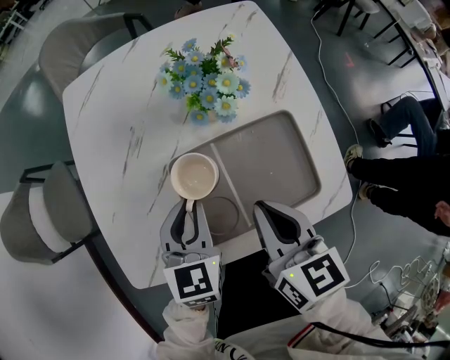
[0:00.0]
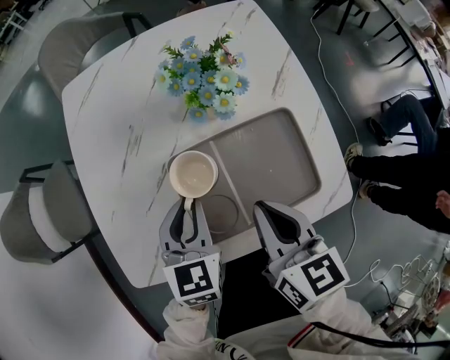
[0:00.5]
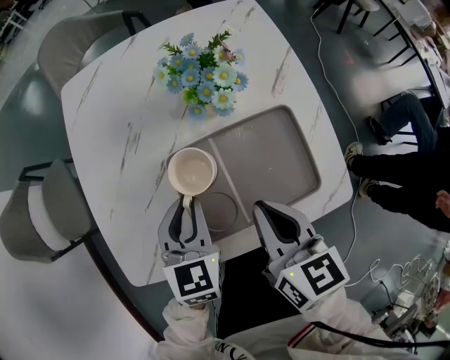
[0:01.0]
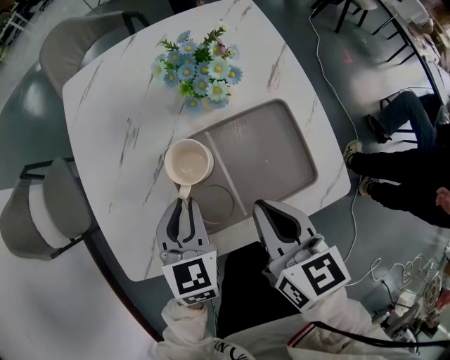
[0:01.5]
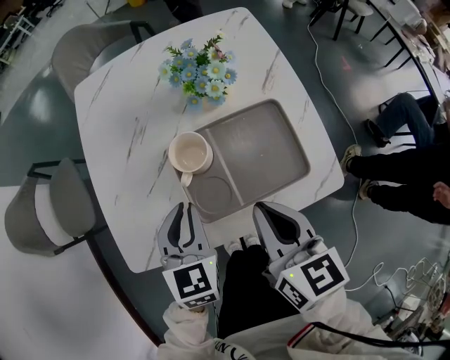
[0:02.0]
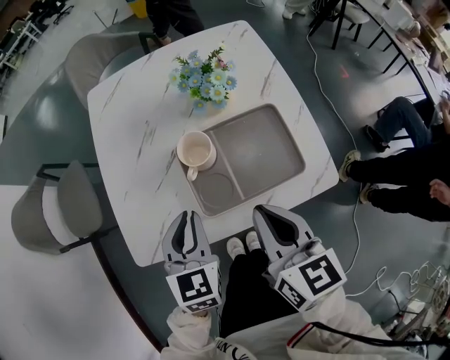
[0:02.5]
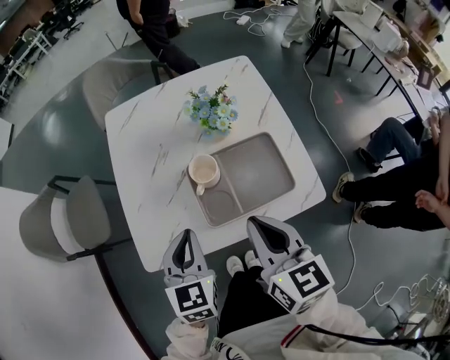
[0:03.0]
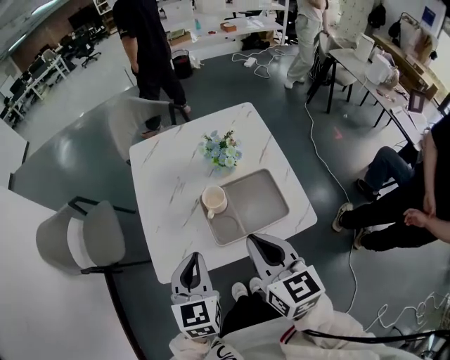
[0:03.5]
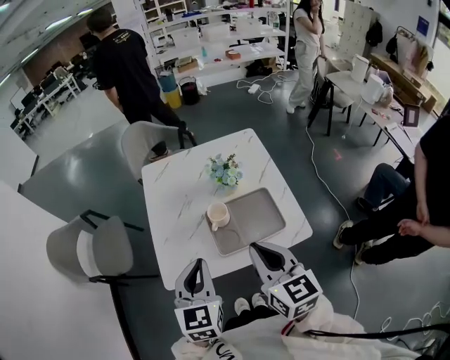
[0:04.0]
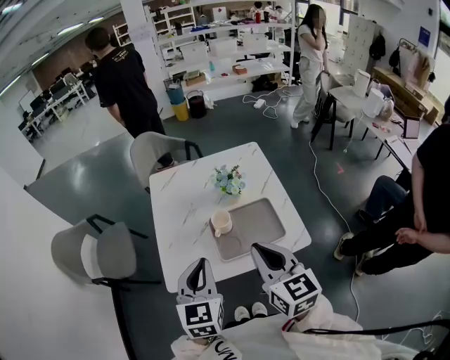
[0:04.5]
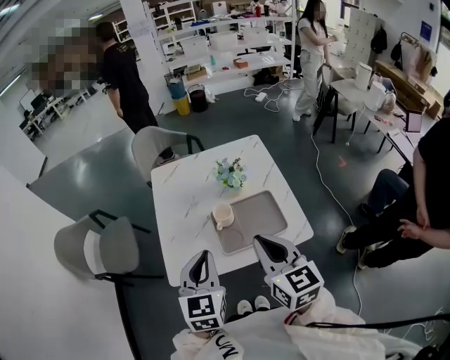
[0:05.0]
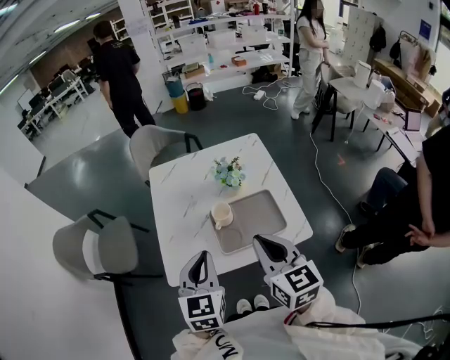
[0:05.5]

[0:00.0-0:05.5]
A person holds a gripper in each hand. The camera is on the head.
0:00.0 to 0:02.0: Both grippers travel together backward, some 5 cm.
0:02.0 to 0:03.5: The right gripper heads upward, covering approximately 20 cm; the left gripper heads upward and backward, covering approximately 20 cm.
0:03.5 to 0:05.5: The right gripper changes place by some 5 cm, while the left gripper heads upward, covering roughly 5 cm.

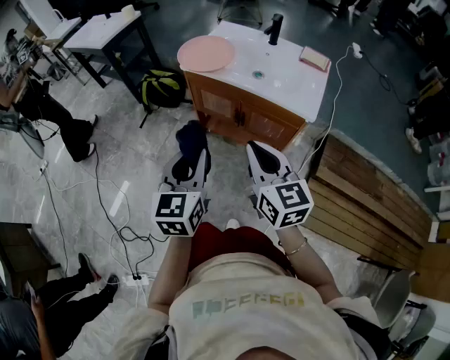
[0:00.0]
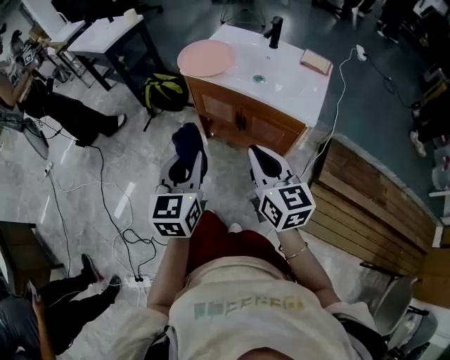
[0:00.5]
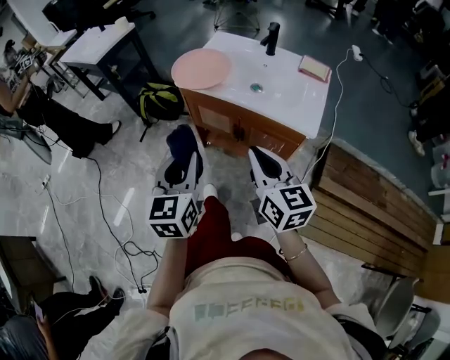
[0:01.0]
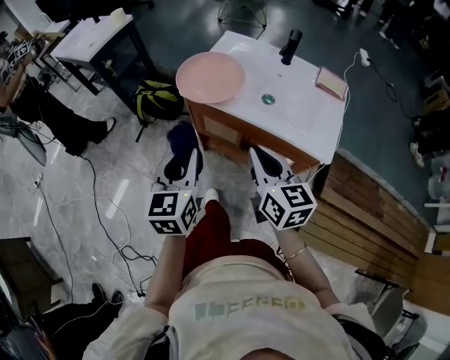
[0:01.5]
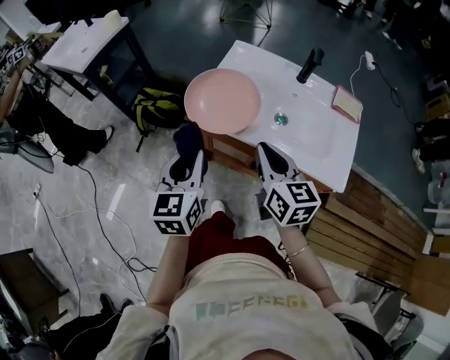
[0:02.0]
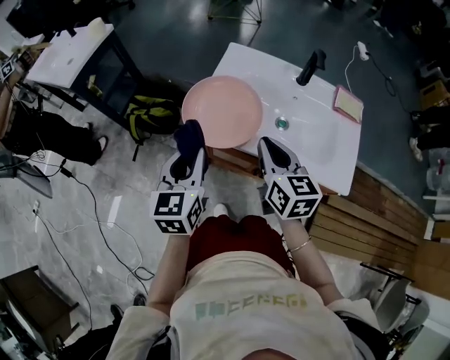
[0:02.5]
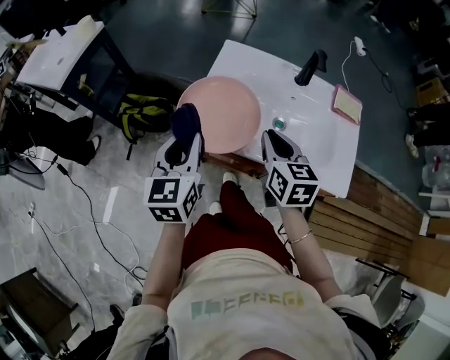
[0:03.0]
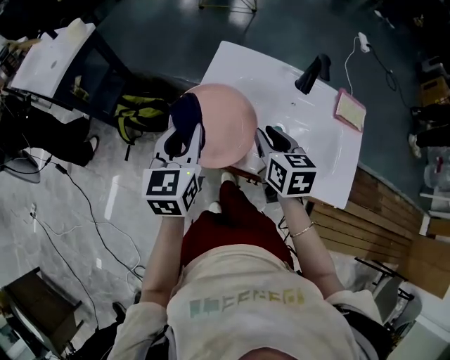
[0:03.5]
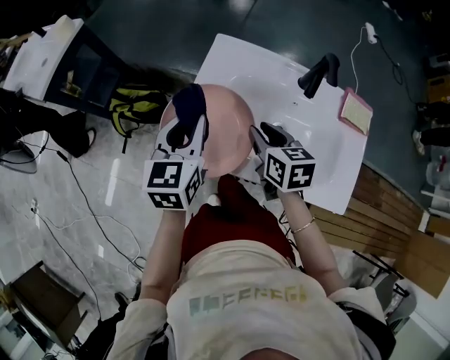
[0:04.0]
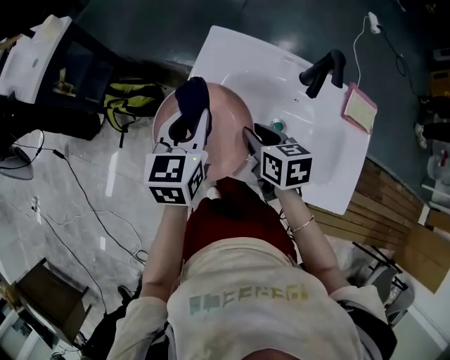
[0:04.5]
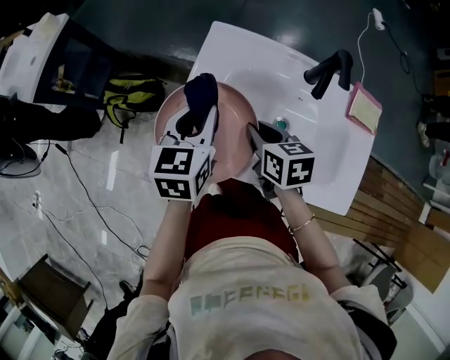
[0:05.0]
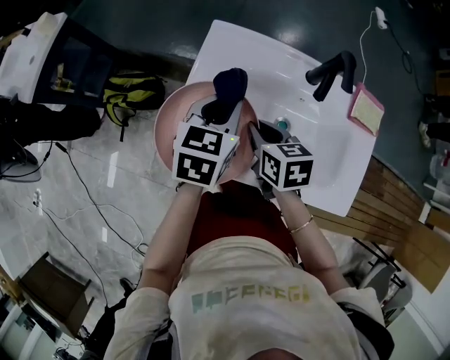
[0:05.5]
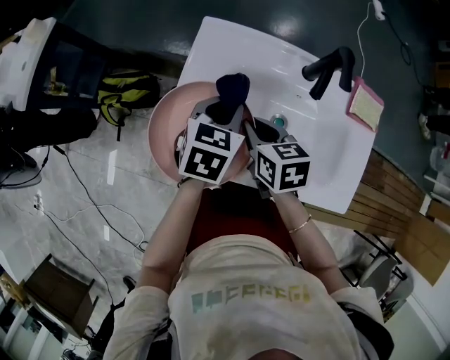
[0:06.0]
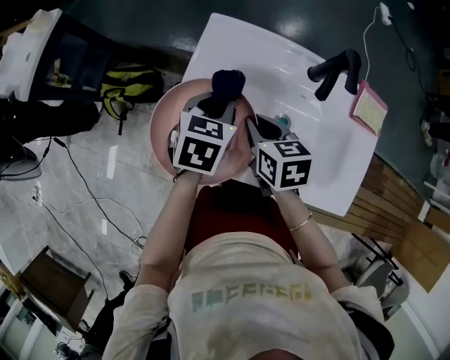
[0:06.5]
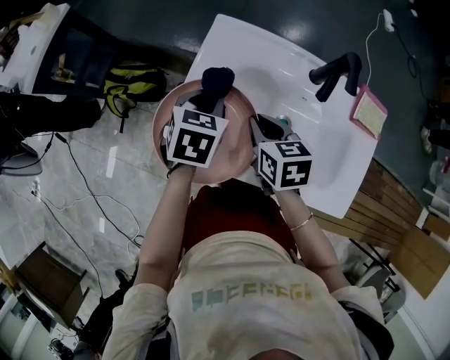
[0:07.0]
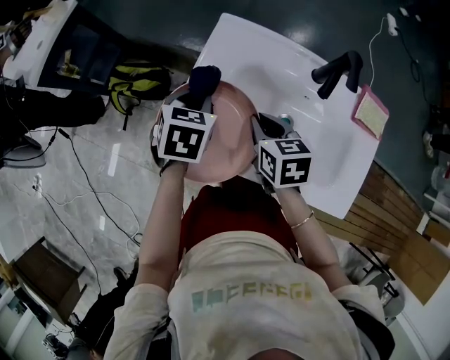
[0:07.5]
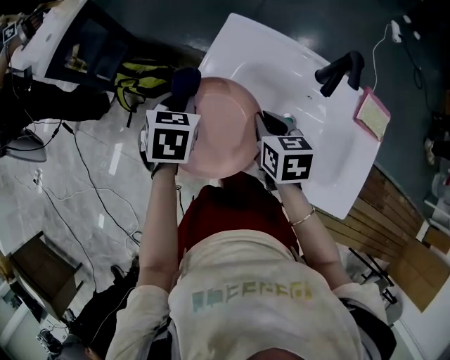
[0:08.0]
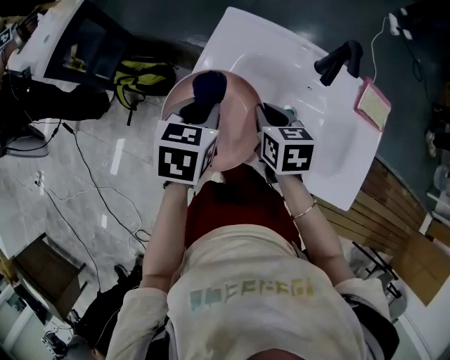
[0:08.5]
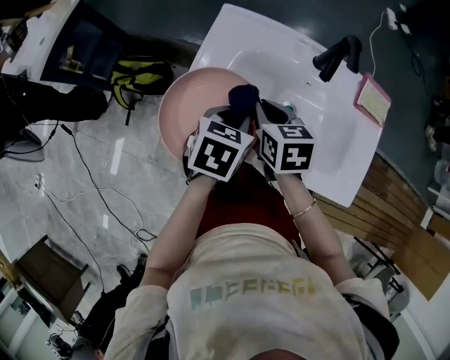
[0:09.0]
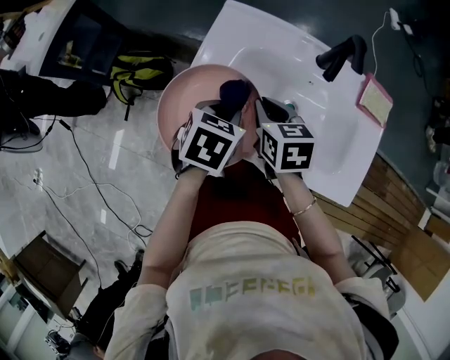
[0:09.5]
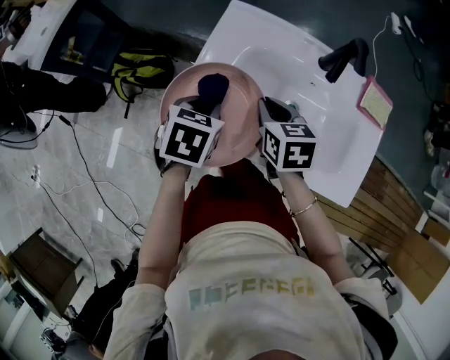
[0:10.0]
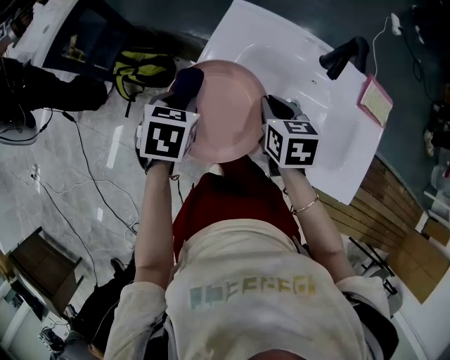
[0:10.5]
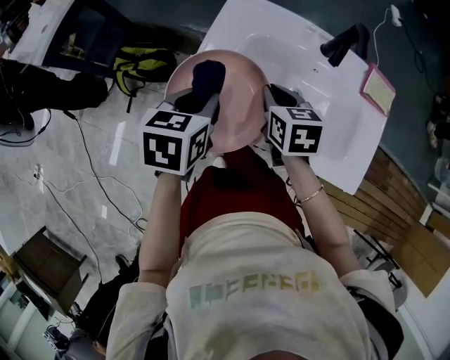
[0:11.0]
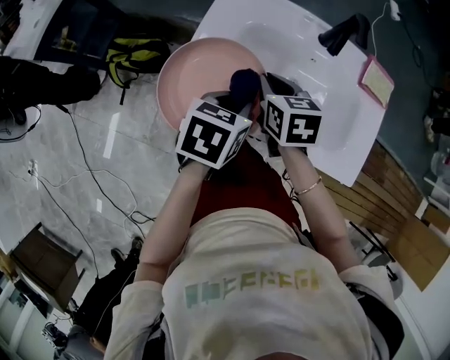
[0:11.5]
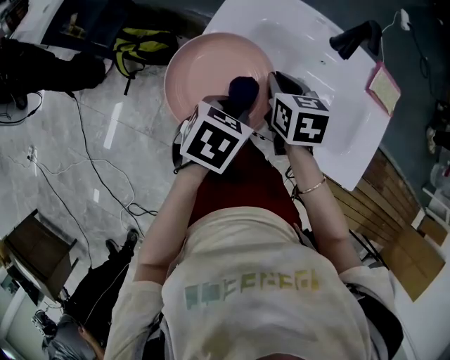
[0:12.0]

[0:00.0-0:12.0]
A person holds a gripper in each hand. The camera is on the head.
0:00.0 to 0:02.0: The grippers both shift forward by about 35 cm.
0:02.0 to 0:04.0: The left gripper heads forward, covering about 25 cm, while the right gripper moves forward and downward, about 25 cm, and changes its angle by roughly 20 degrees.
0:04.0 to 0:06.0: The right gripper changes place by roughly 5 cm. The left gripper goes about 15 cm to the right, downward and forward, and changes its angle by about 30 degrees.
0:06.0 to 0:08.0: The left gripper moves to the left, some 15 cm, and swivels about 20 degrees.
0:08.0 to 0:10.0: The left gripper shifts some 5 cm to the right.
0:10.0 to 0:12.0: The left gripper is displaced backward and to the right by some 10 cm.

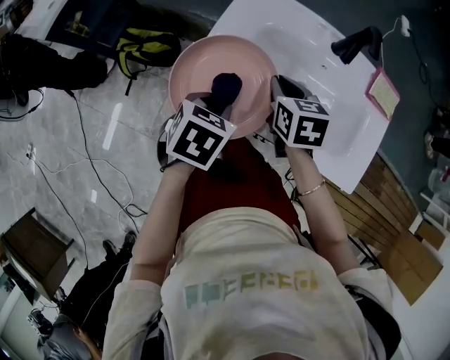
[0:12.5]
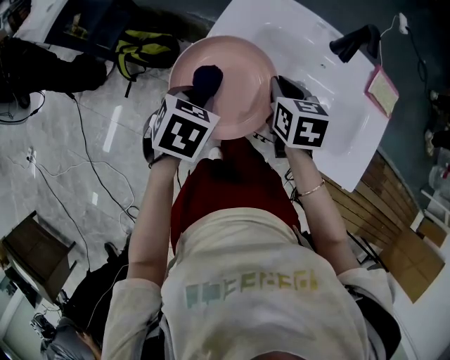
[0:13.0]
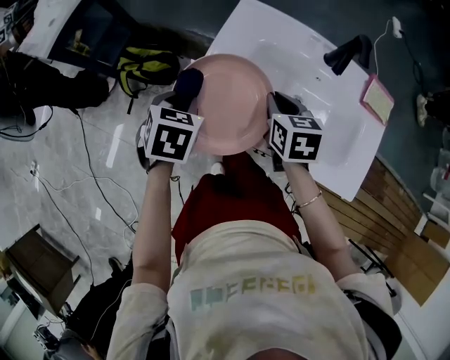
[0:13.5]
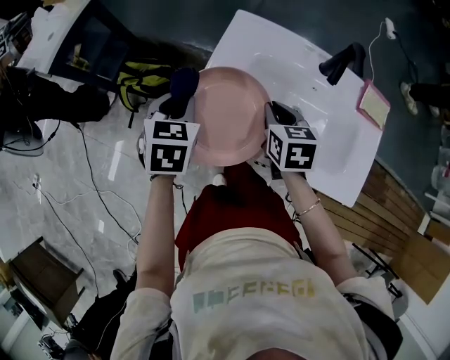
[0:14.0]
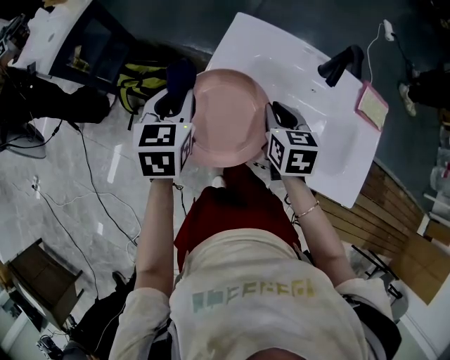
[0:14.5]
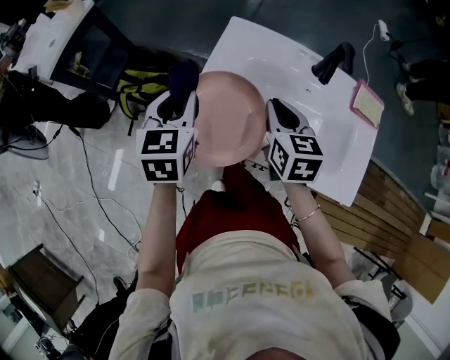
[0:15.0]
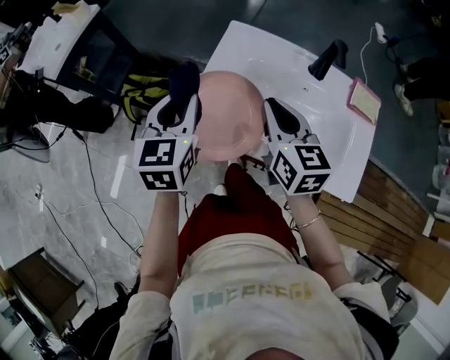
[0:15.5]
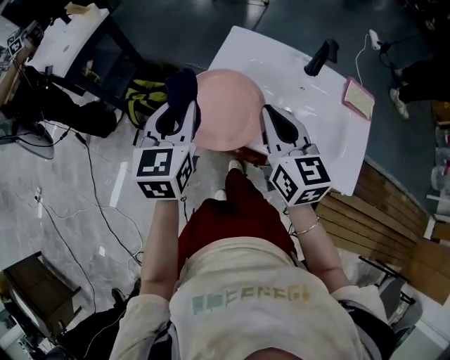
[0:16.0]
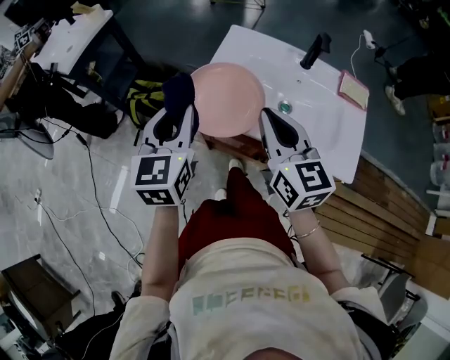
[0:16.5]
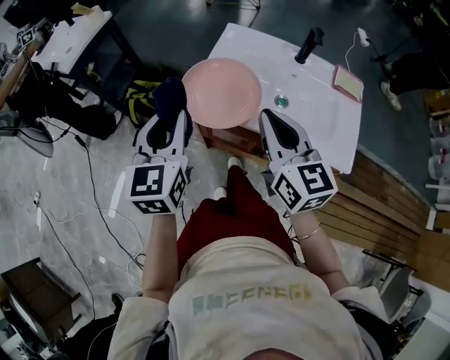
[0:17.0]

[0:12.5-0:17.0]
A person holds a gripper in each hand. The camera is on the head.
0:12.5 to 0:14.5: The left gripper shifts about 15 cm forward, to the left and upward, and turns by approximately 30 degrees.
0:14.5 to 0:17.0: The two grippers go some 25 cm backward and upward. The right gripper points its fingers approximately 30 degrees further upward. Meanwhile the left gripper changes its angle by about 20 degrees.

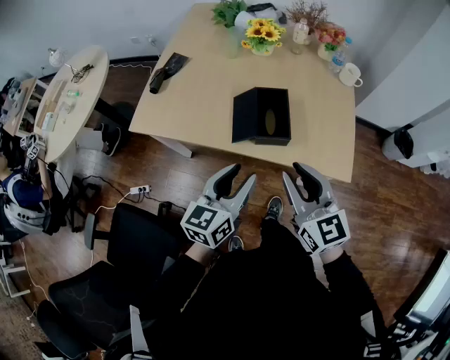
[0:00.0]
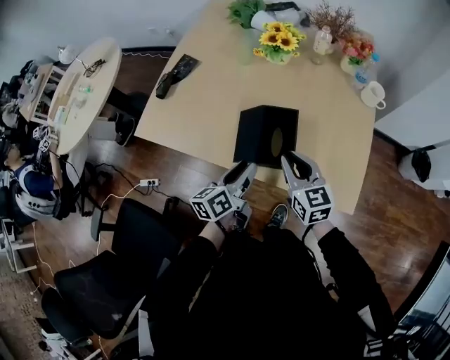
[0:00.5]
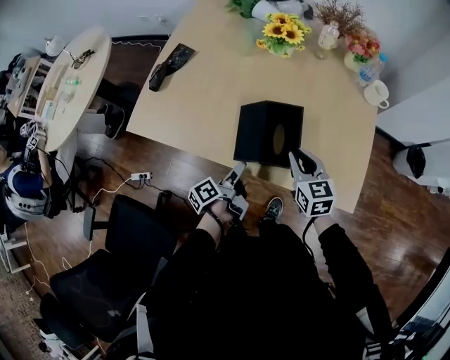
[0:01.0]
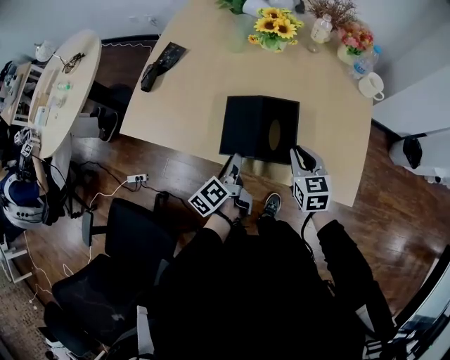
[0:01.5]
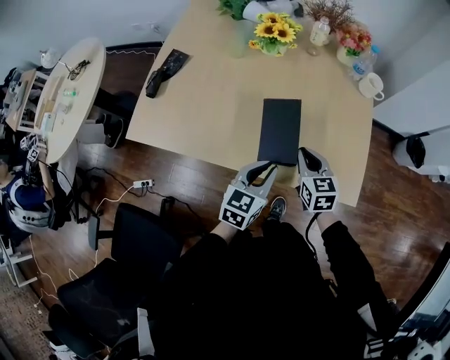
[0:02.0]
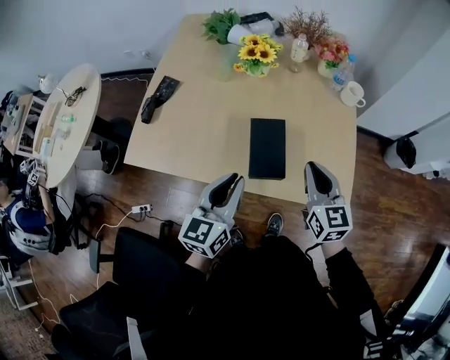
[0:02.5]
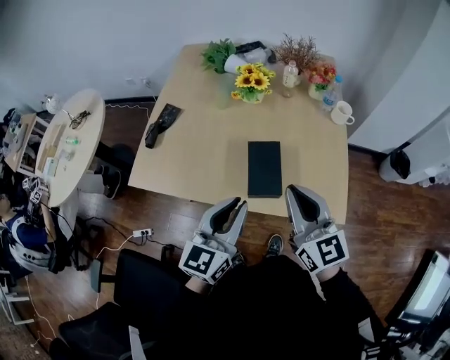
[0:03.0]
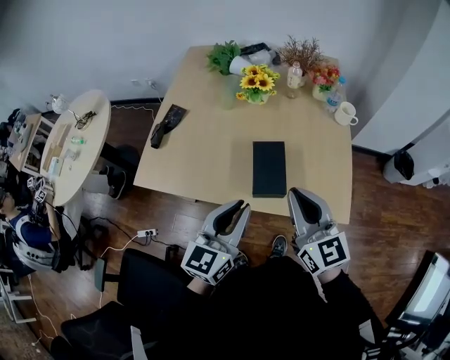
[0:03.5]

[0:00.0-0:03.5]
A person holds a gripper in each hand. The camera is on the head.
0:00.0 to 0:02.0: The left gripper shifts roughly 20 cm forward, downward and to the right, and closes its fingers. Meanwhile the right gripper heads downward, forward and to the right, covering roughly 30 cm, and swivels approximately 30 degrees.
0:02.0 to 0:03.5: The grippers both shift upward by some 20 cm. The right gripper rotates about 30 degrees.
